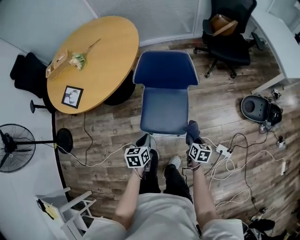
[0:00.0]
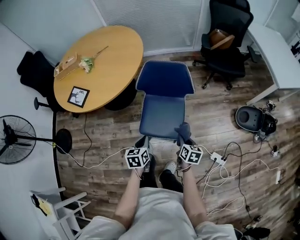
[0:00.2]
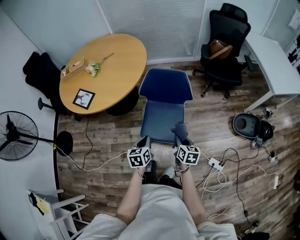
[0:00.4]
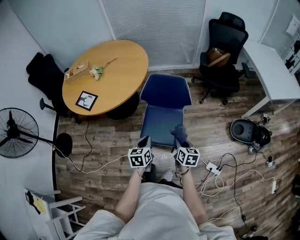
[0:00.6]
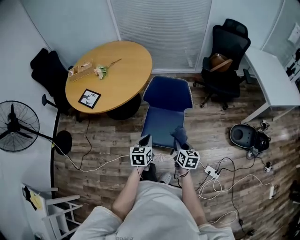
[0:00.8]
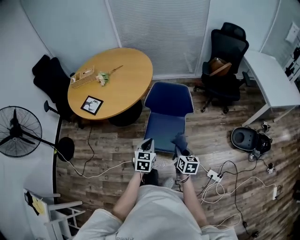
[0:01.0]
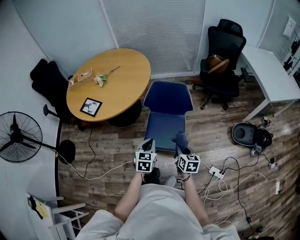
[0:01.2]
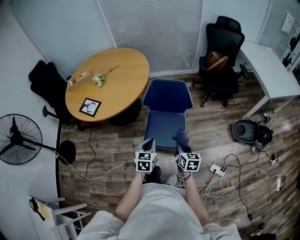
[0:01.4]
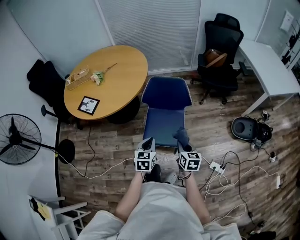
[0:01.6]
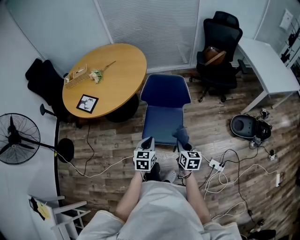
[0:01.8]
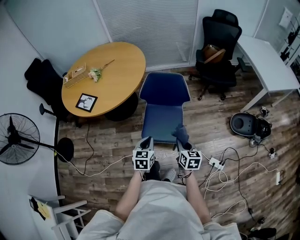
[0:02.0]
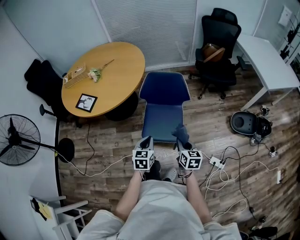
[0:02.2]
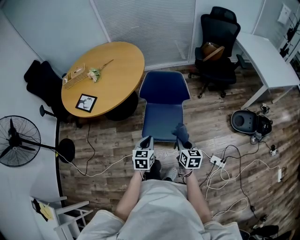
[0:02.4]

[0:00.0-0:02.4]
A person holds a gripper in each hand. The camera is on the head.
0.0 to 1.2 s: The grippers both shift upward by approximately 20 cm. The left gripper swivels roughly 20 degrees.
1.2 to 2.4 s: There are only small adjustments of the grippers.

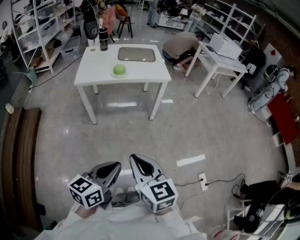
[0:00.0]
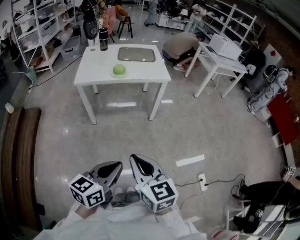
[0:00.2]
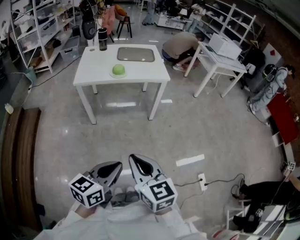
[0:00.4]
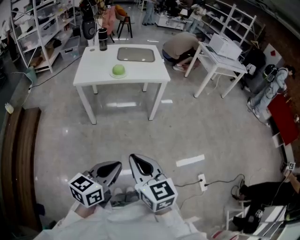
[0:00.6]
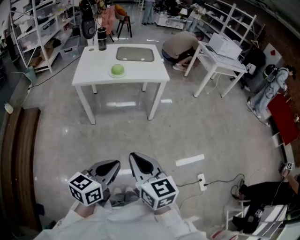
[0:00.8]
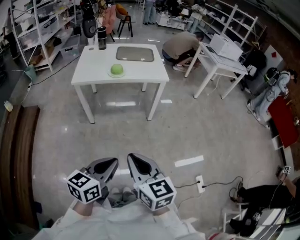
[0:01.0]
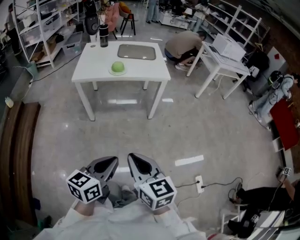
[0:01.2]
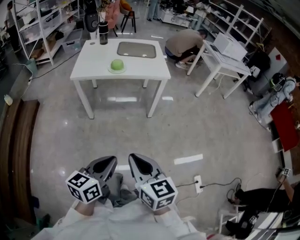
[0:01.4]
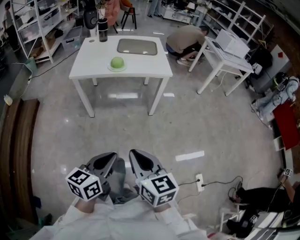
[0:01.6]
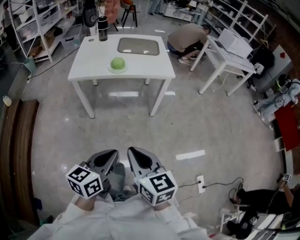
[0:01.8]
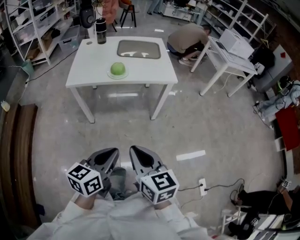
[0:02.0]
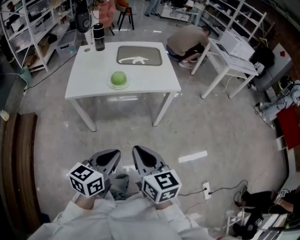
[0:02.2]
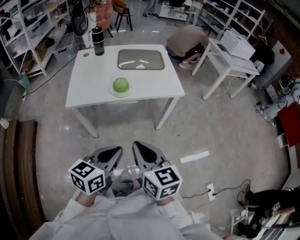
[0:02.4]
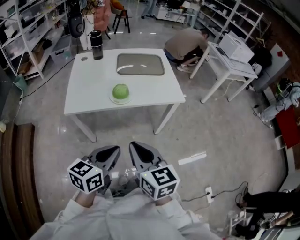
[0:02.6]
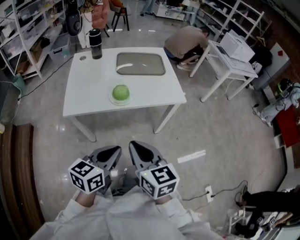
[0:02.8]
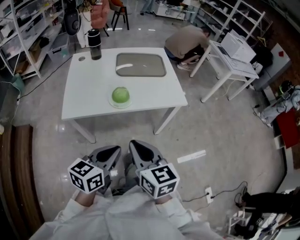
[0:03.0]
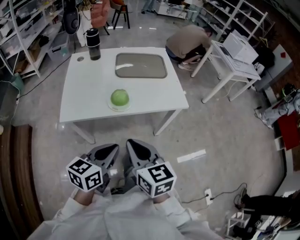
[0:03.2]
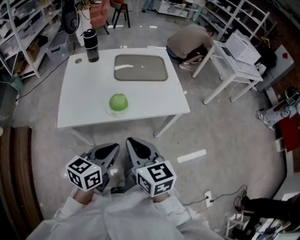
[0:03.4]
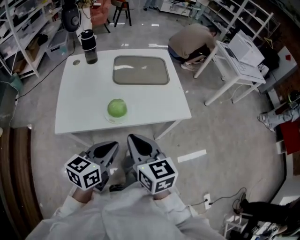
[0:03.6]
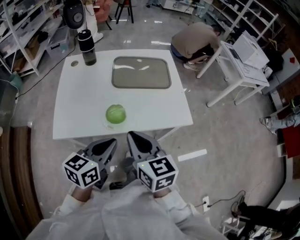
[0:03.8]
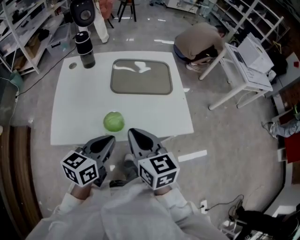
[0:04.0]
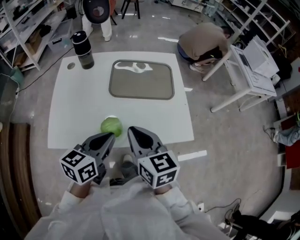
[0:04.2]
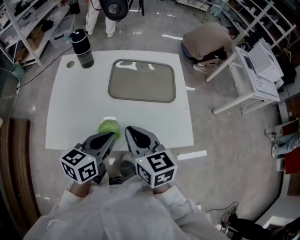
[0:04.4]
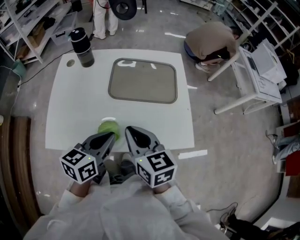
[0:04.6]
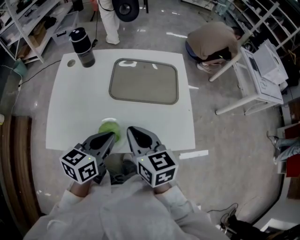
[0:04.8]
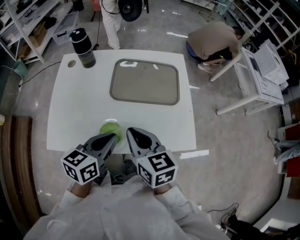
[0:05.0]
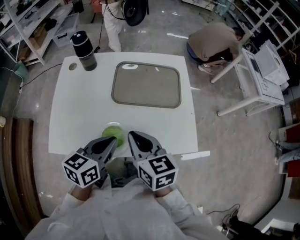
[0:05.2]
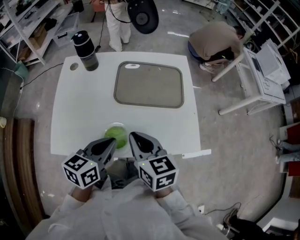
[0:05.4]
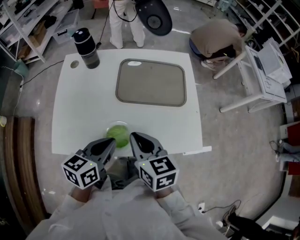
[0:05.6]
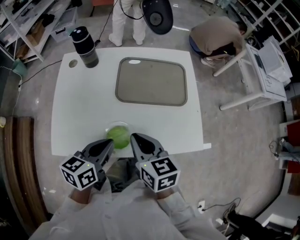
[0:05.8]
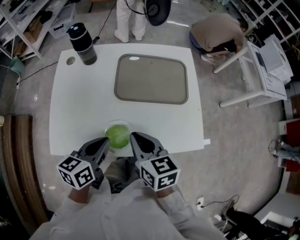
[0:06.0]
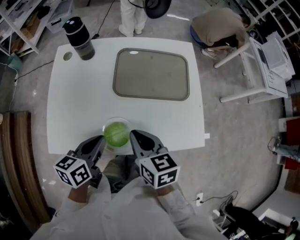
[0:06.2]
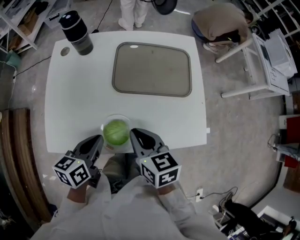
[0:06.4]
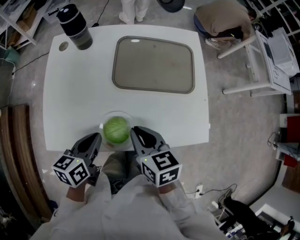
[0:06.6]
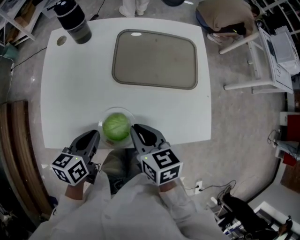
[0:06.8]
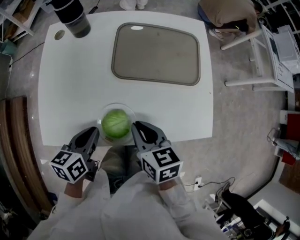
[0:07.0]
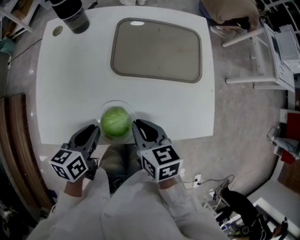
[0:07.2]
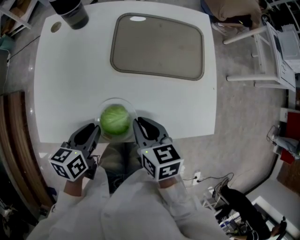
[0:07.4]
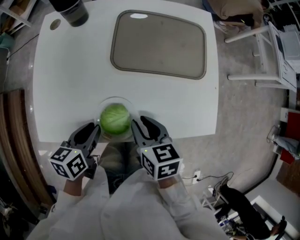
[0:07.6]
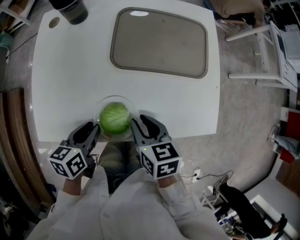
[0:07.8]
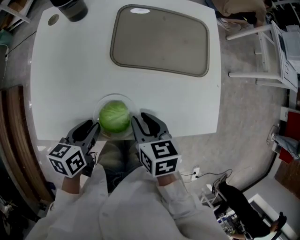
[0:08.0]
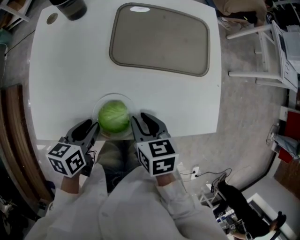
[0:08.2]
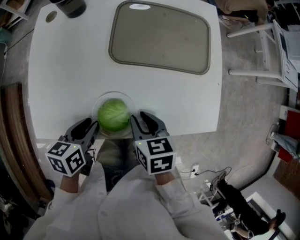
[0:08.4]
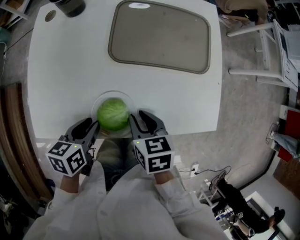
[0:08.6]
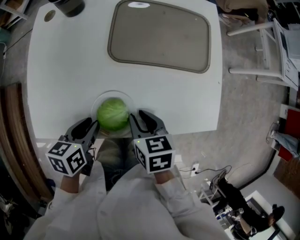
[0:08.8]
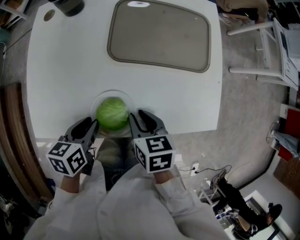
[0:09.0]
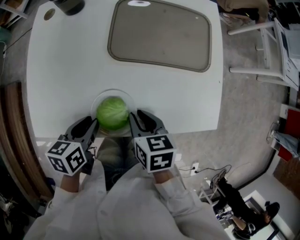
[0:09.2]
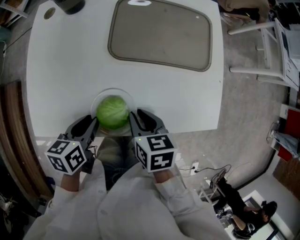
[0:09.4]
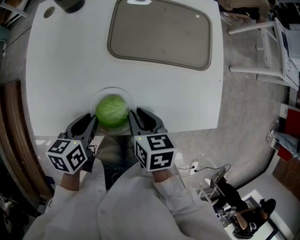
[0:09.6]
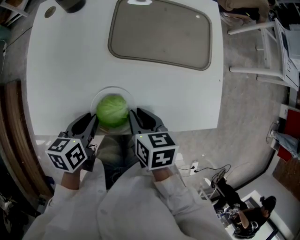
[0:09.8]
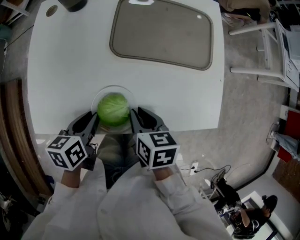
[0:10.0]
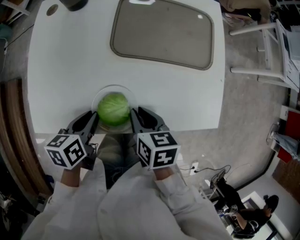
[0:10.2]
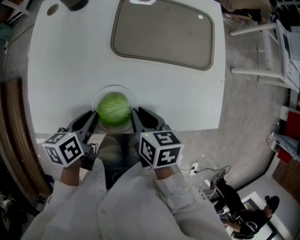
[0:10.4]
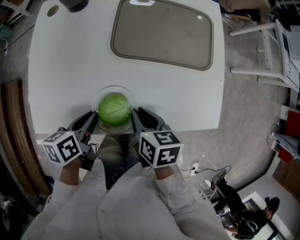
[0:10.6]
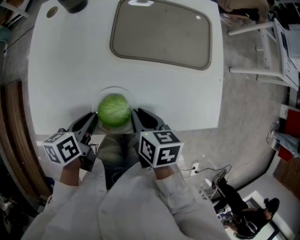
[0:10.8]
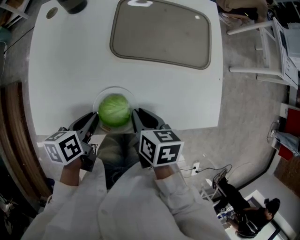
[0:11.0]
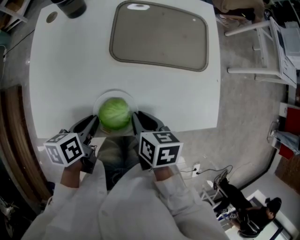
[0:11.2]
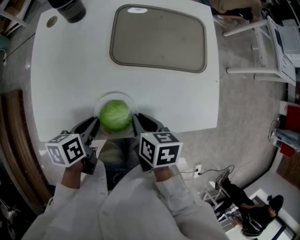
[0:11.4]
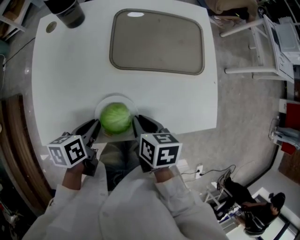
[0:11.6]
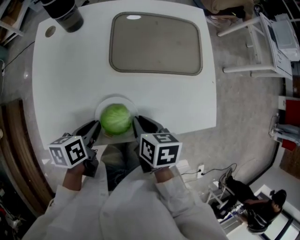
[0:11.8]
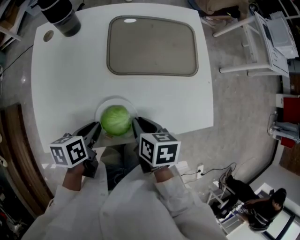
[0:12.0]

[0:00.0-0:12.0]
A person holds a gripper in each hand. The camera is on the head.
0.0 to 1.6 s: The two grippers go roughly 5 cm forward.
1.6 to 3.0 s: The right gripper is displaced forward and to the left by some 40 cm; the left gripper moves forward, roughly 35 cm.
3.0 to 4.4 s: The grippers both shift forward by about 35 cm.
4.4 to 6.0 s: The right gripper is displaced downward by roughly 5 cm. The left gripper moves to the left, approximately 5 cm.
6.0 to 7.6 s: The grippers both shift downward by about 10 cm.
7.6 to 12.0 s: The grippers stay close to where they were, moving slightly.

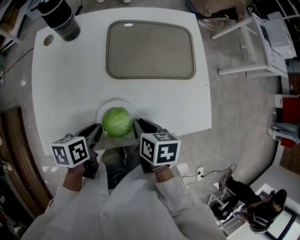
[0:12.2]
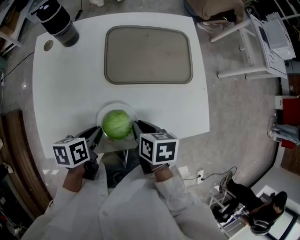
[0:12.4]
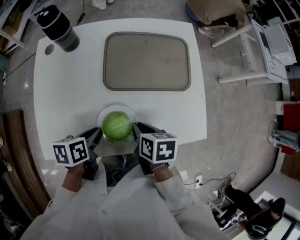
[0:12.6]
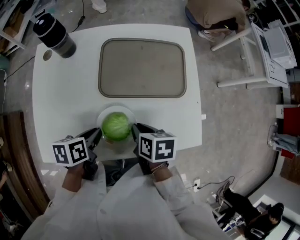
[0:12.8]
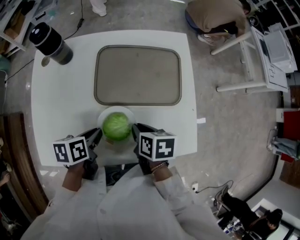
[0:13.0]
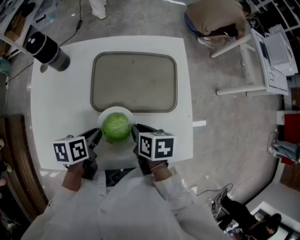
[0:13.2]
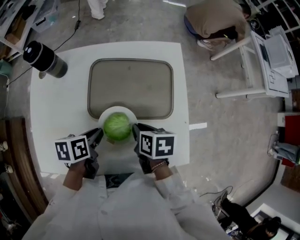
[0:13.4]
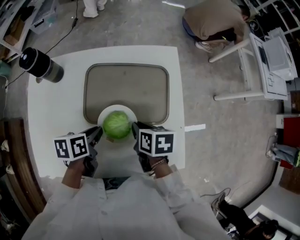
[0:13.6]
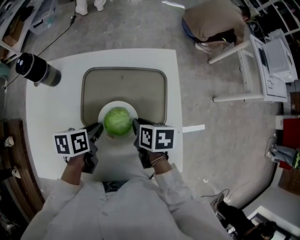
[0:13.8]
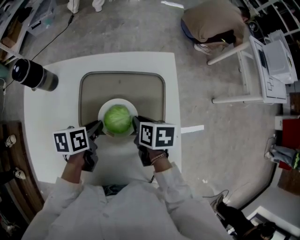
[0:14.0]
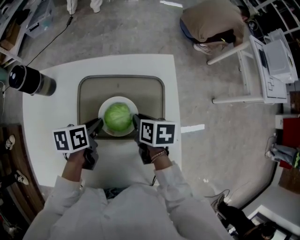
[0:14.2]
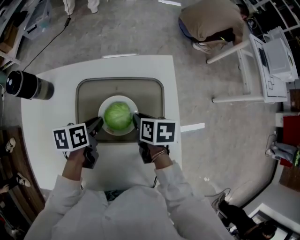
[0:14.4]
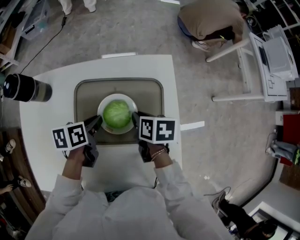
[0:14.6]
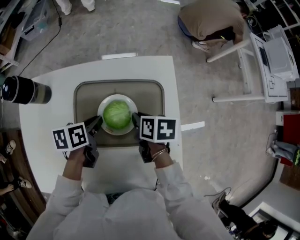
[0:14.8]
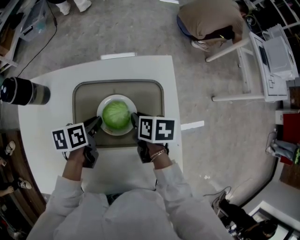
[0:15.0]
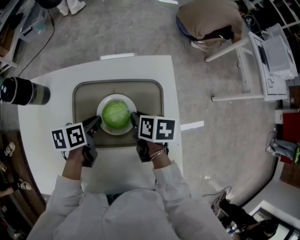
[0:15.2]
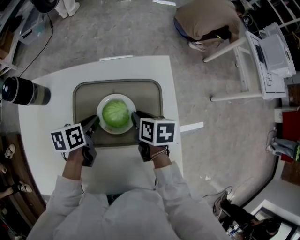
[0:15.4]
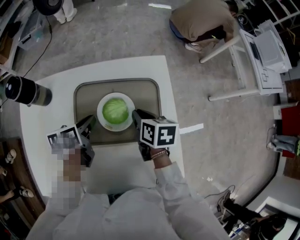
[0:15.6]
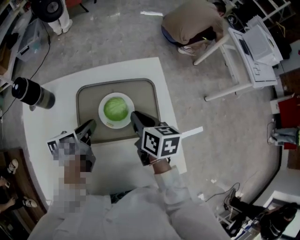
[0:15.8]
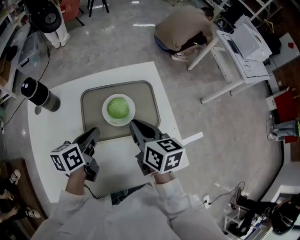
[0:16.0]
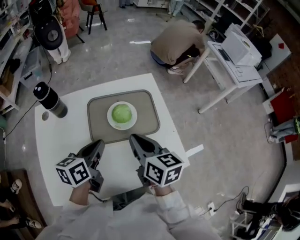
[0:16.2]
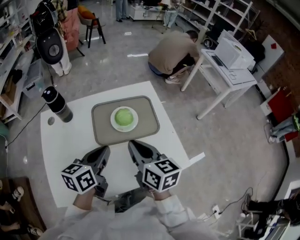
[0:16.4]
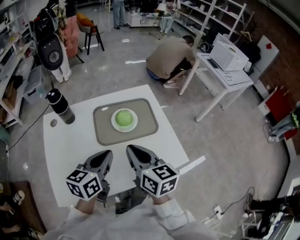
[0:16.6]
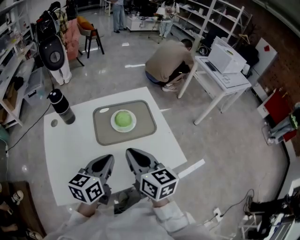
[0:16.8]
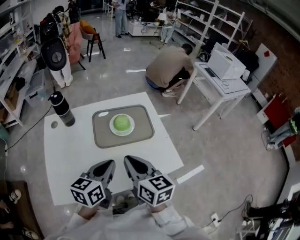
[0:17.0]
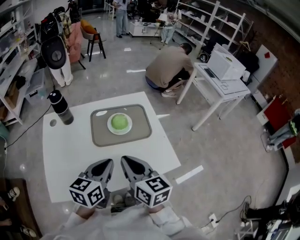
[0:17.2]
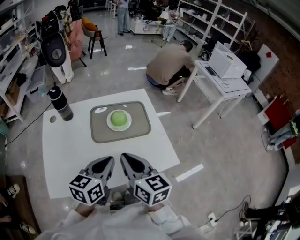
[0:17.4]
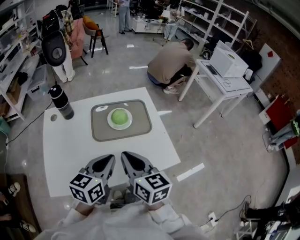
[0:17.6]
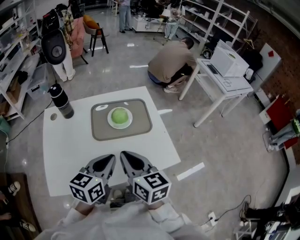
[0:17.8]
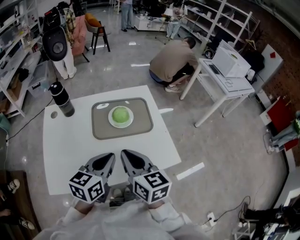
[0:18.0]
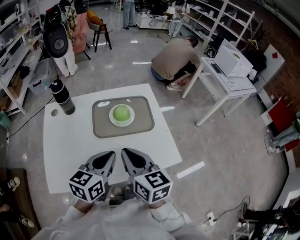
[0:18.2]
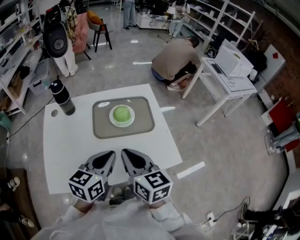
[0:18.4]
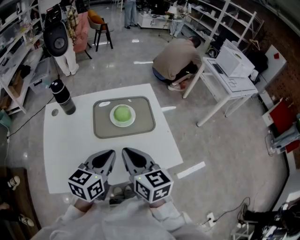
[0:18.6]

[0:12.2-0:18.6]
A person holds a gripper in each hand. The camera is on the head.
12.2 to 13.8 s: Both grippers travel together forward and to the right, some 25 cm.
13.8 to 15.4 s: The two grippers go some 10 cm forward.
15.4 to 17.0 s: Both grippers move backward and upward, some 40 cm. The left gripper rotates about 40 degrees. The right gripper tilts its fingers approximately 40 degrees upward.
17.0 to 18.6 s: There are only small adjustments of the grippers.

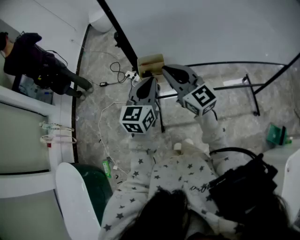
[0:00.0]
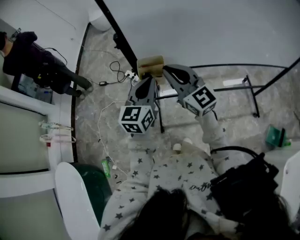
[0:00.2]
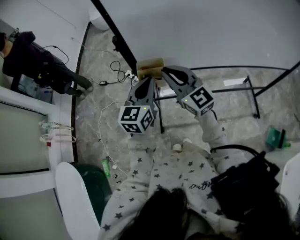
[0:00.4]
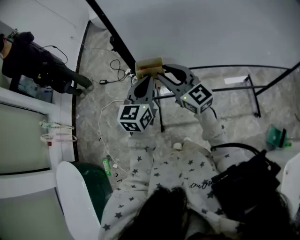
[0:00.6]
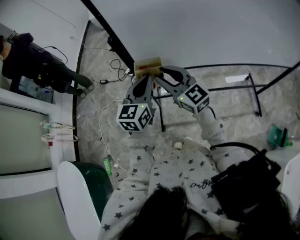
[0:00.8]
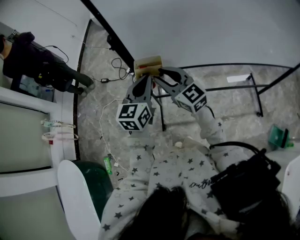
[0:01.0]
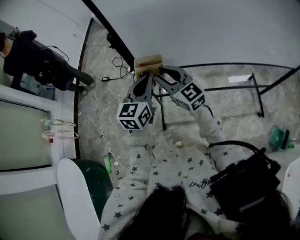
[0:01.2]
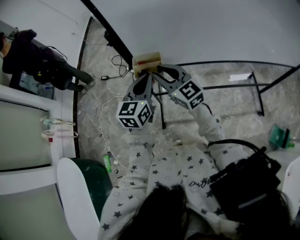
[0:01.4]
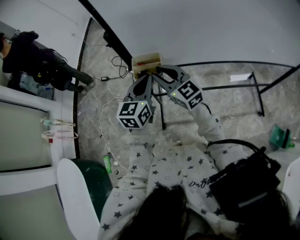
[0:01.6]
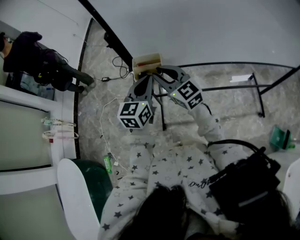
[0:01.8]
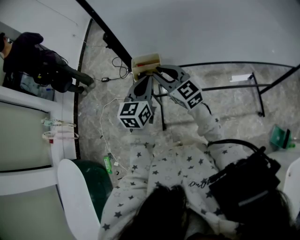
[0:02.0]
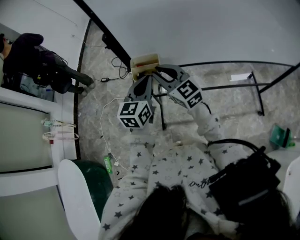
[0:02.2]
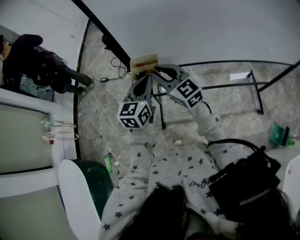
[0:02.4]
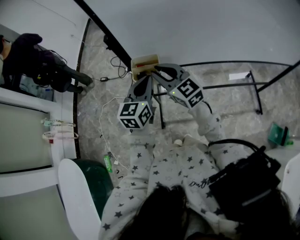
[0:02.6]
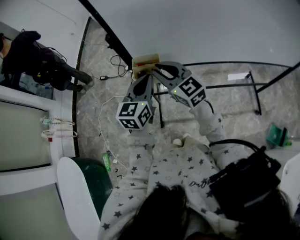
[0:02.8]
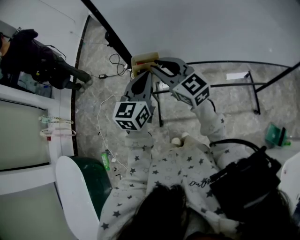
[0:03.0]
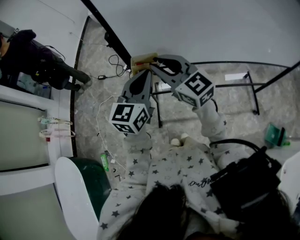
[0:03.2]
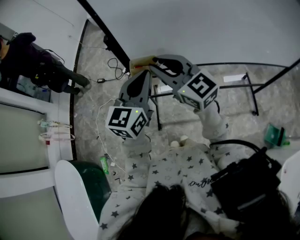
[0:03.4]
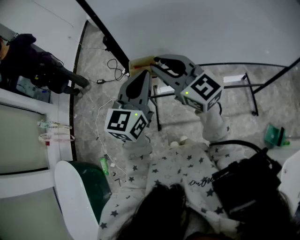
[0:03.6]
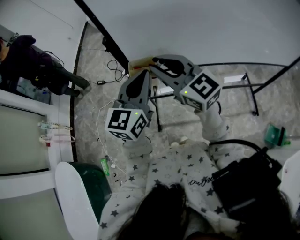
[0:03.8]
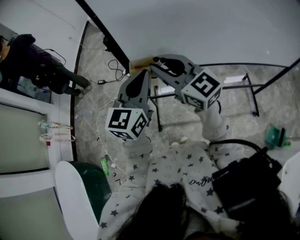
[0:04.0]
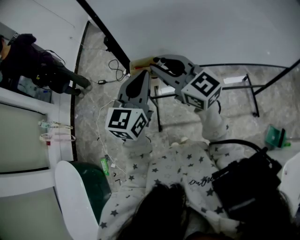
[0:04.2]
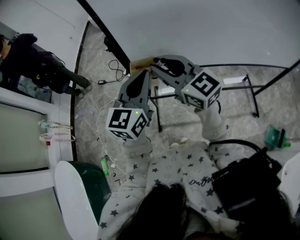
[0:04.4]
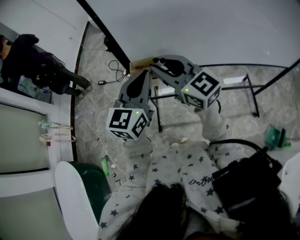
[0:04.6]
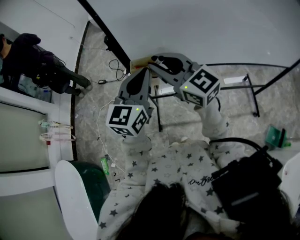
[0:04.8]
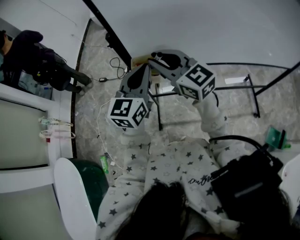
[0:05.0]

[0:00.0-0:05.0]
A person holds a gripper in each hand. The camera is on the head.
0.0 to 1.6 s: The right gripper travels downward by about 5 cm, and opens its fingers.
1.6 to 3.4 s: Both grippers move upward, roughly 10 cm.
3.4 to 5.0 s: There are only small adjustments of the grippers.
